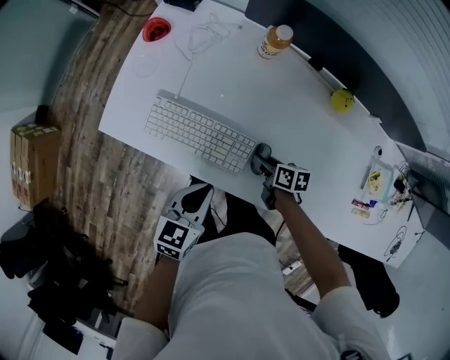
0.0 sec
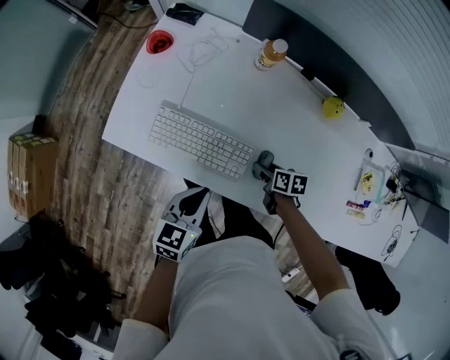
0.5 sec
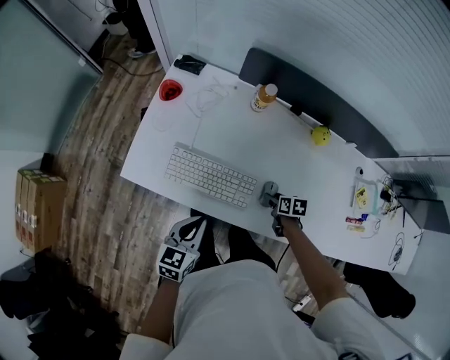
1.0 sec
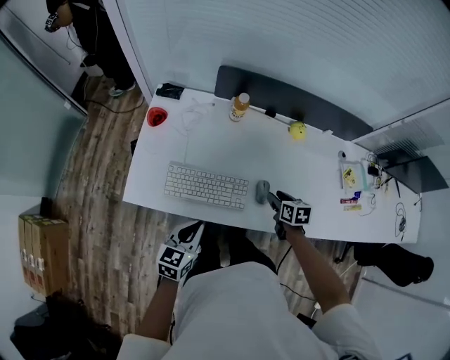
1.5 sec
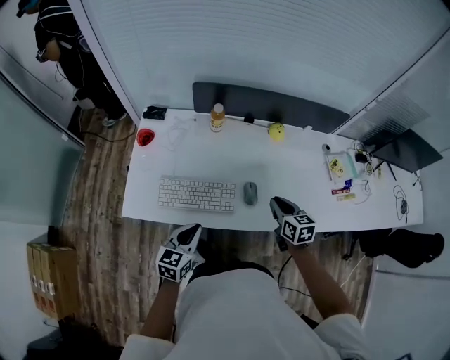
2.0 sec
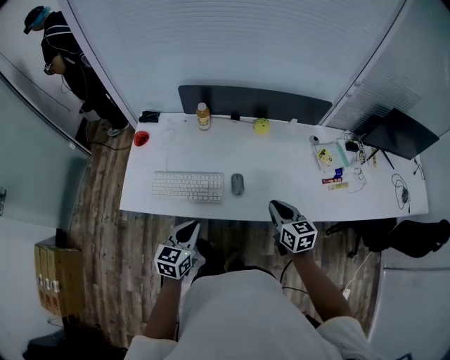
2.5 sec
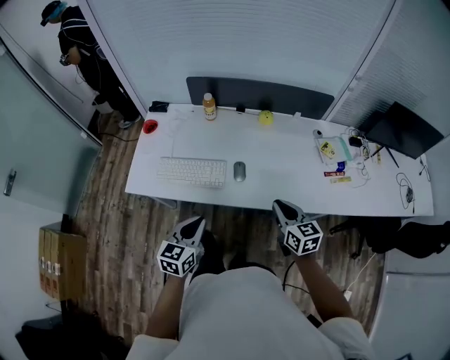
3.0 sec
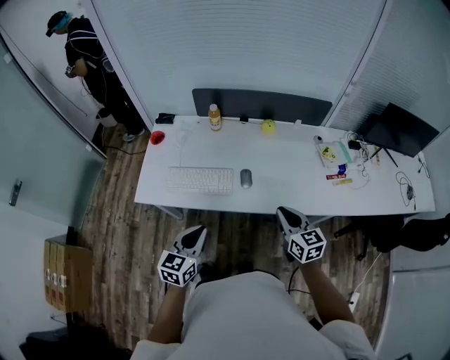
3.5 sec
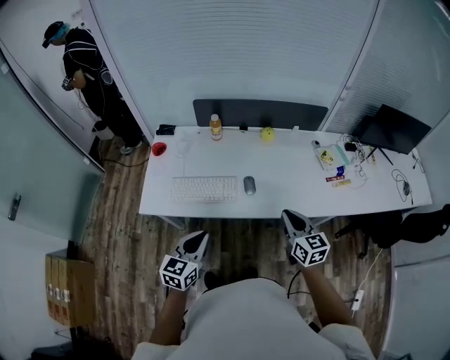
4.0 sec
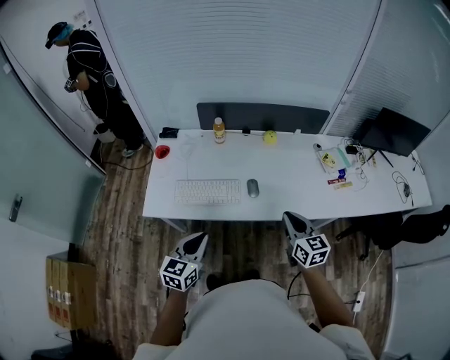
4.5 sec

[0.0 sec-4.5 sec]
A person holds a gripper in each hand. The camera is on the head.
0.0 sec to 2.0 sec: The right gripper is displaced upward by some 20 cm, rotates some 40 degrees, and opens, then closes once more. Meanwhile the left gripper ends up approximately 10 cm from where it was, and swivels some 20 degrees.
2.0 sec to 4.5 sec: Both grippers move backward and upward, approximately 20 cm.

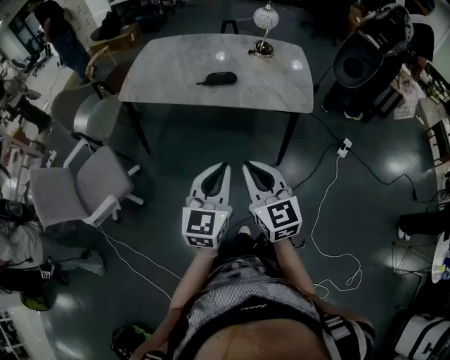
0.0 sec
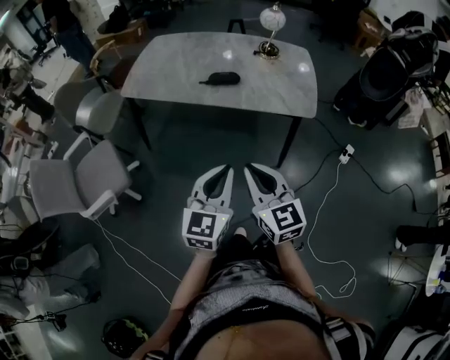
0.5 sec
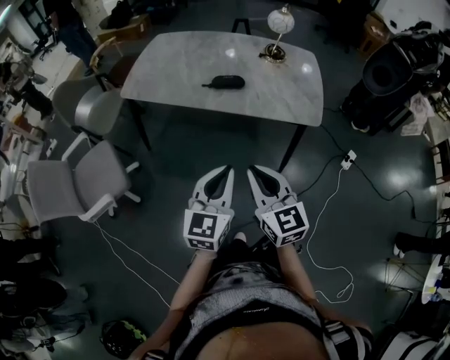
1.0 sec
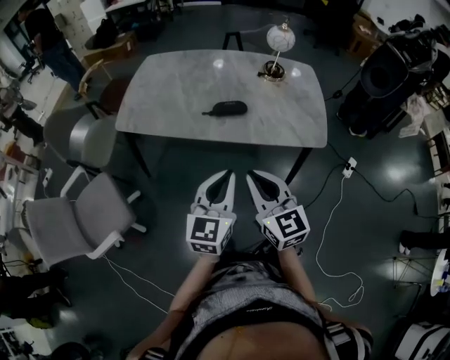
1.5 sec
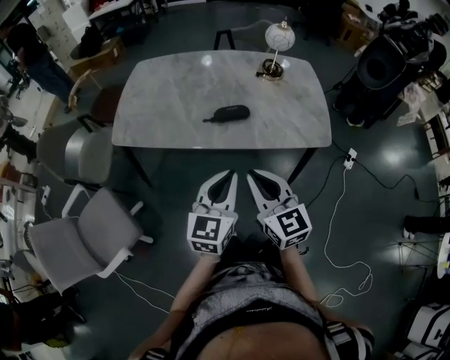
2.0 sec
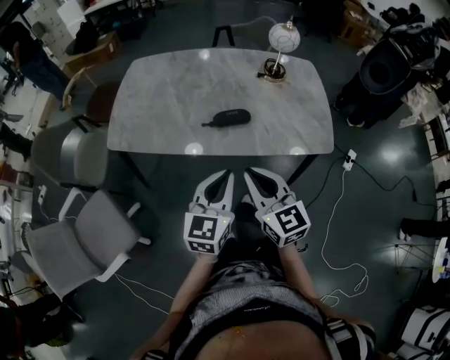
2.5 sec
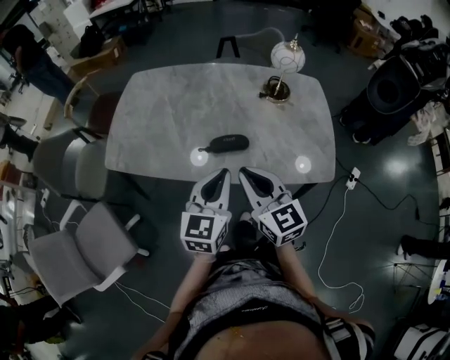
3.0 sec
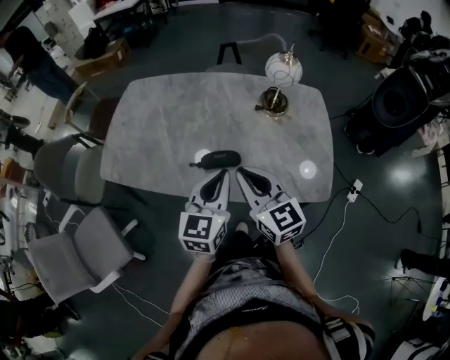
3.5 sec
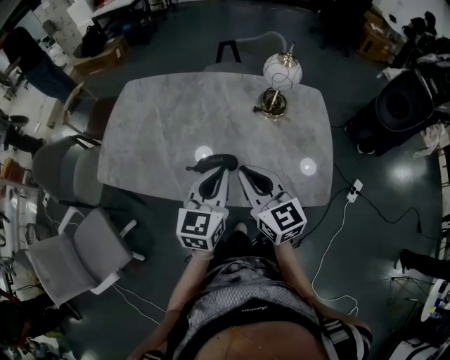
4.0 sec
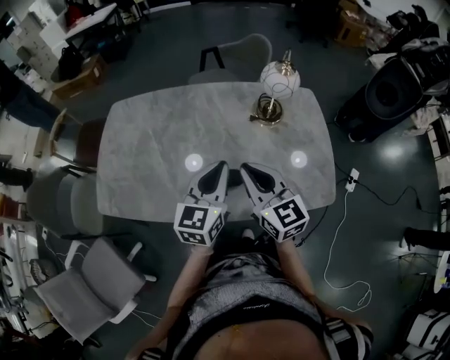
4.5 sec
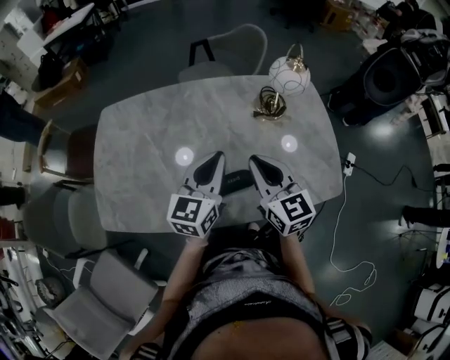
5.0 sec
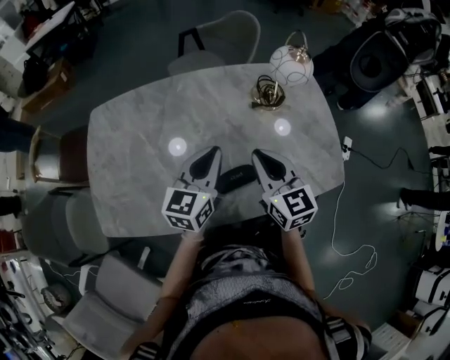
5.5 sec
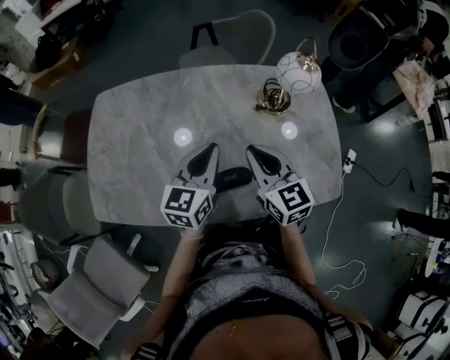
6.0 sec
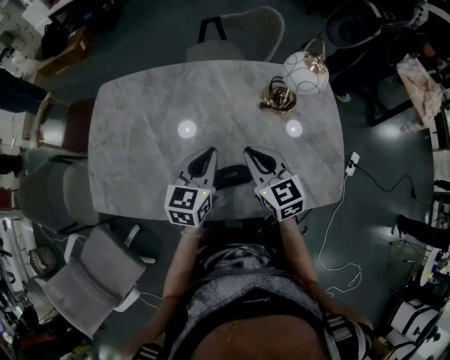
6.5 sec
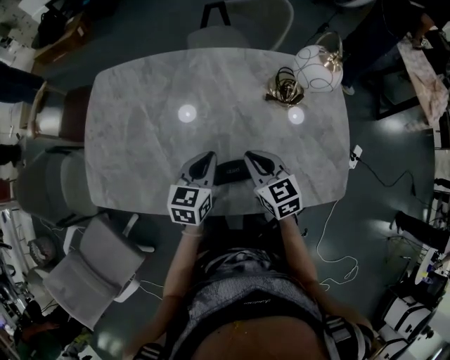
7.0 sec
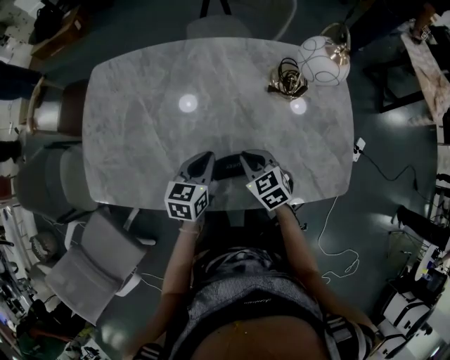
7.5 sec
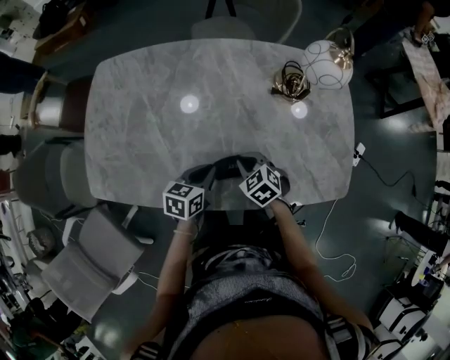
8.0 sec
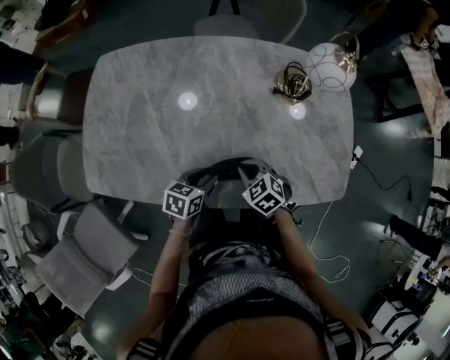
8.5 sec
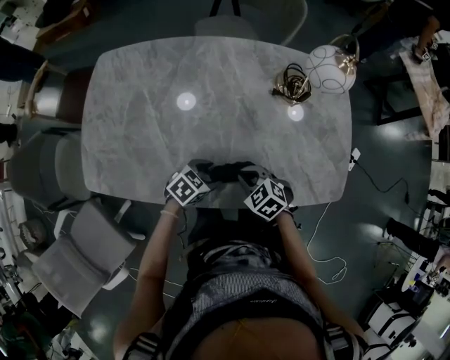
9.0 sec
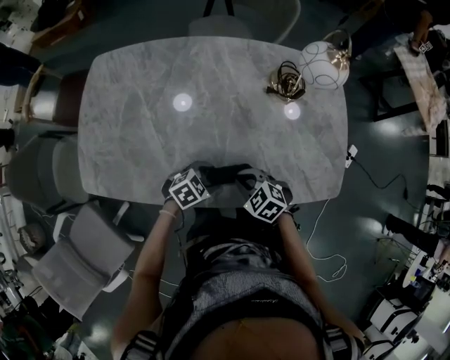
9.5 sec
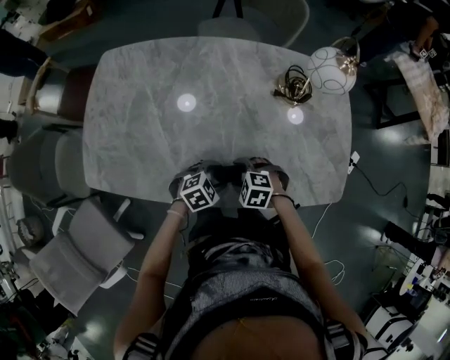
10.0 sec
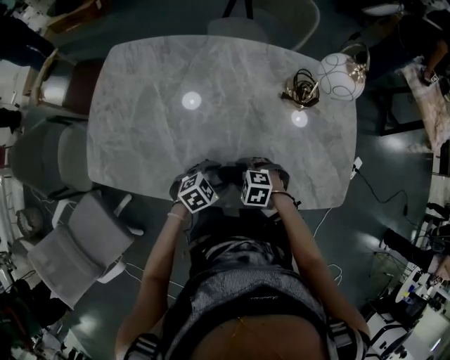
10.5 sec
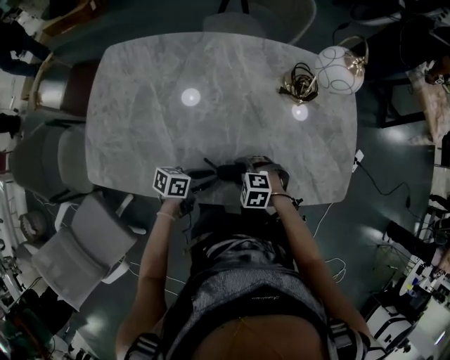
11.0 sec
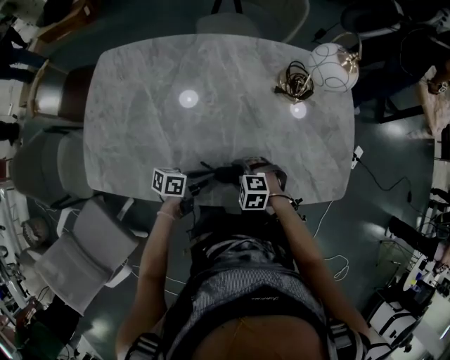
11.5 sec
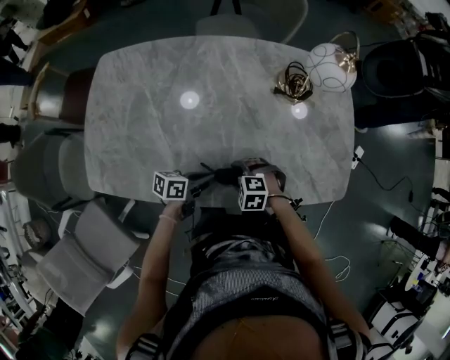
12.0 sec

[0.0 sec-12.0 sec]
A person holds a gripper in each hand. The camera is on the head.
0.0 sec to 2.0 sec: The grippers both shift forward by approximately 20 cm.
2.0 sec to 4.0 sec: Both grippers travel together forward, approximately 25 cm.
4.0 sec to 6.0 sec: The left gripper travels forward and to the left by approximately 20 cm; the right gripper goes approximately 15 cm forward.
6.0 sec to 8.0 sec: Both grippers travel together downward, roughly 20 cm. The right gripper angles its fingers downward, by roughly 40 degrees. The left gripper changes its angle by approximately 30 degrees.
8.0 sec to 10.0 sec: The left gripper changes place by some 10 cm, rolls clockwise, seen from behind, by some 50 degrees, and opens its fingers. Meanwhile the right gripper changes place by some 5 cm, changes its angle by some 40 degrees, and opens up.
10.0 sec to 12.0 sec: The left gripper rolls counterclockwise, seen from behind, by some 60 degrees, and closes its fingers.

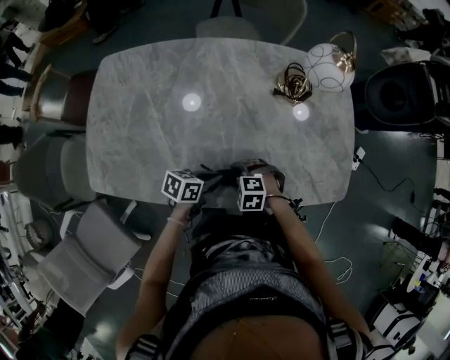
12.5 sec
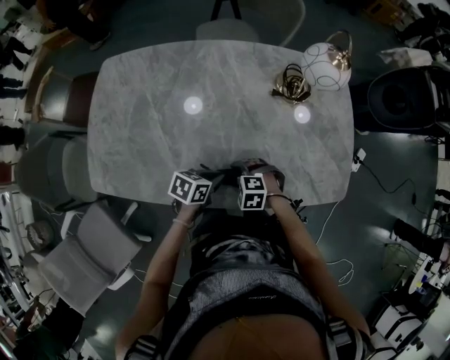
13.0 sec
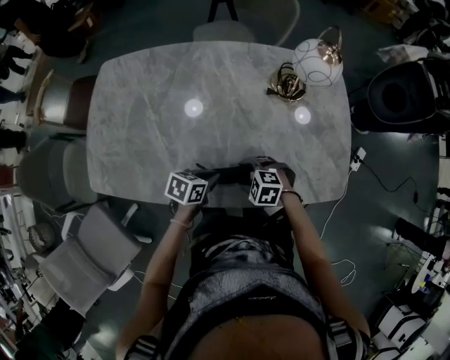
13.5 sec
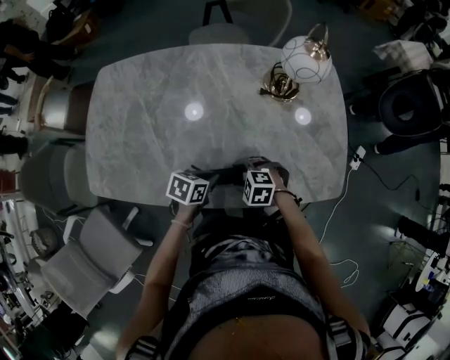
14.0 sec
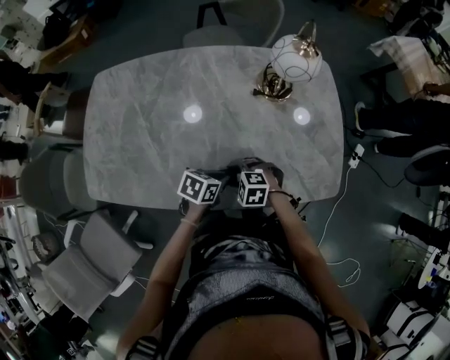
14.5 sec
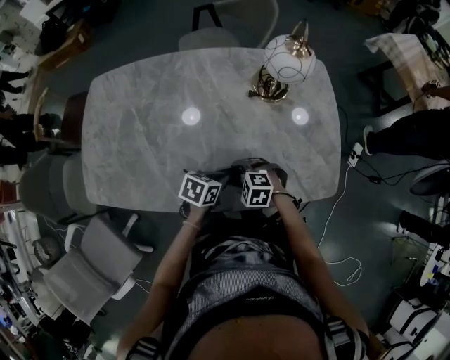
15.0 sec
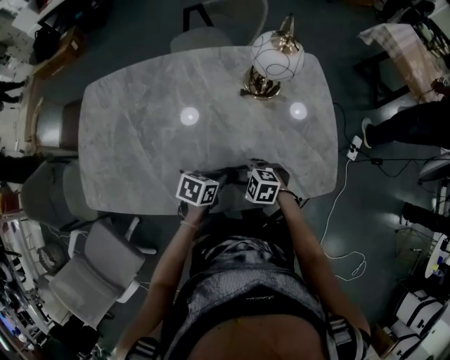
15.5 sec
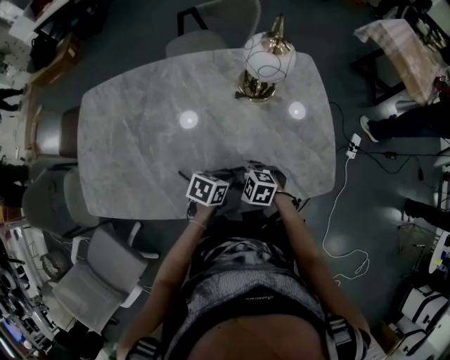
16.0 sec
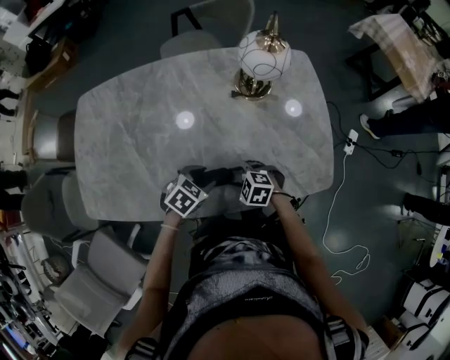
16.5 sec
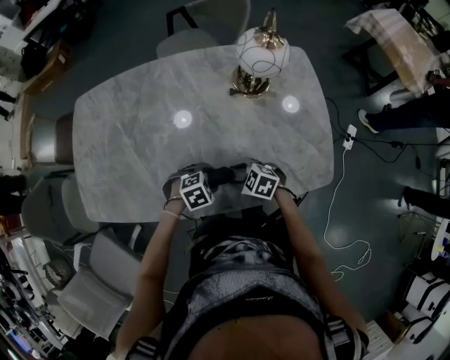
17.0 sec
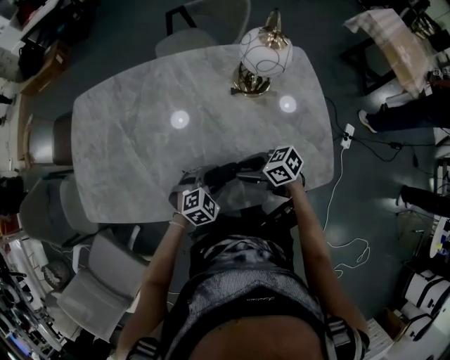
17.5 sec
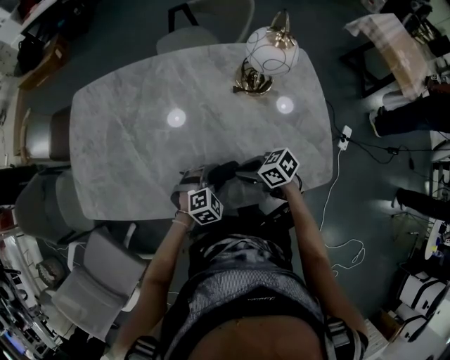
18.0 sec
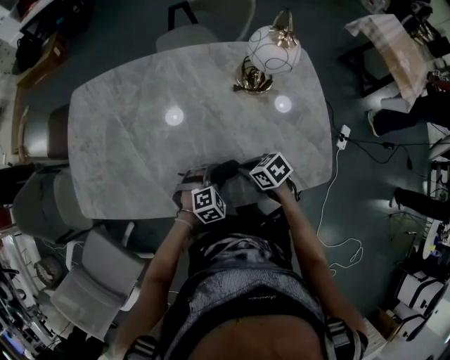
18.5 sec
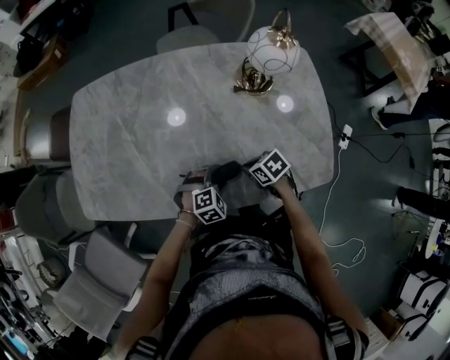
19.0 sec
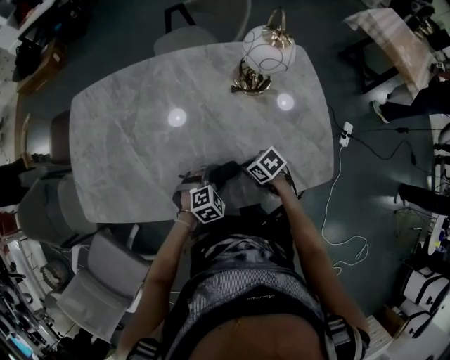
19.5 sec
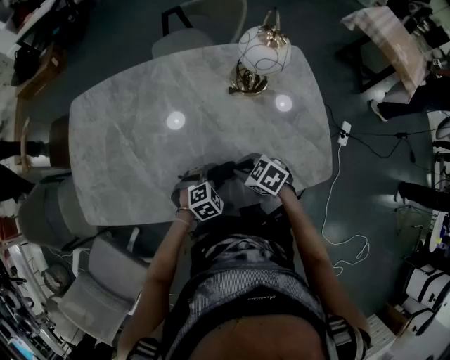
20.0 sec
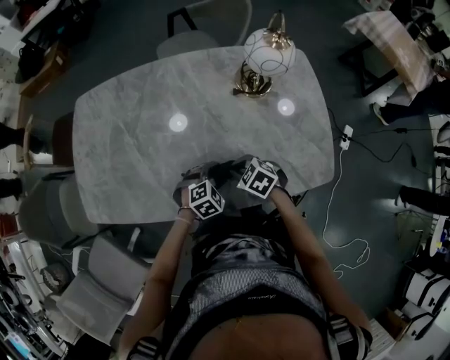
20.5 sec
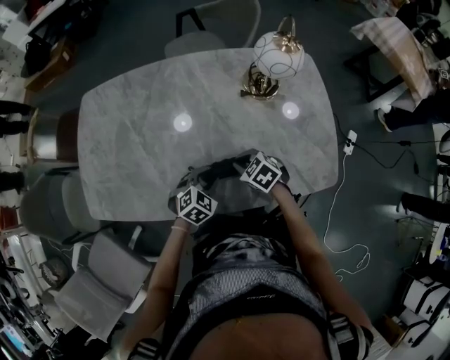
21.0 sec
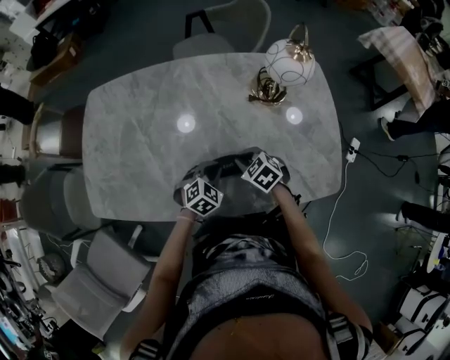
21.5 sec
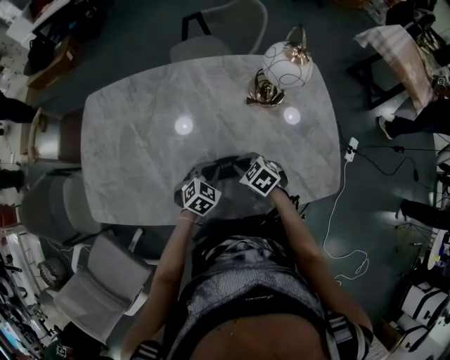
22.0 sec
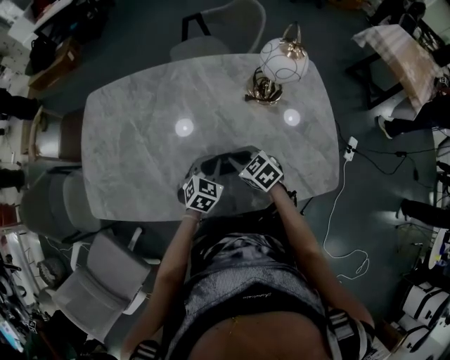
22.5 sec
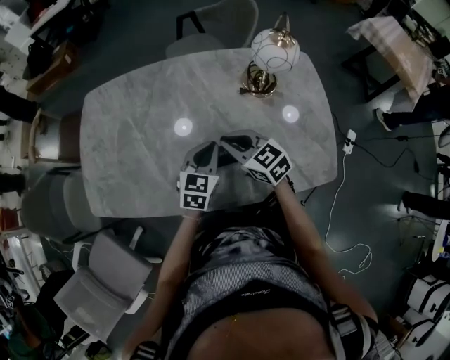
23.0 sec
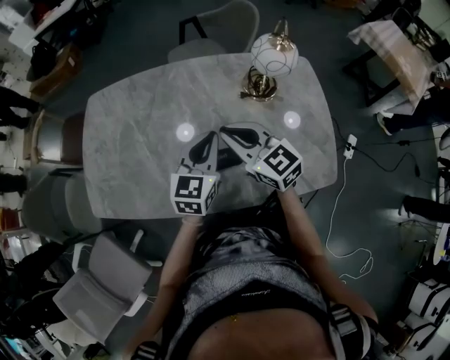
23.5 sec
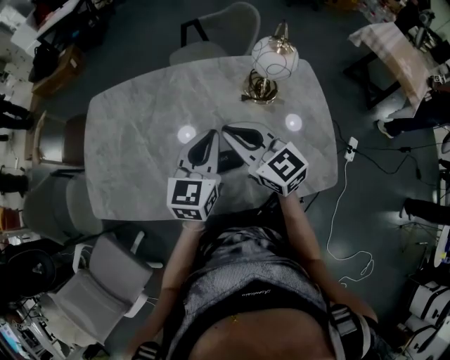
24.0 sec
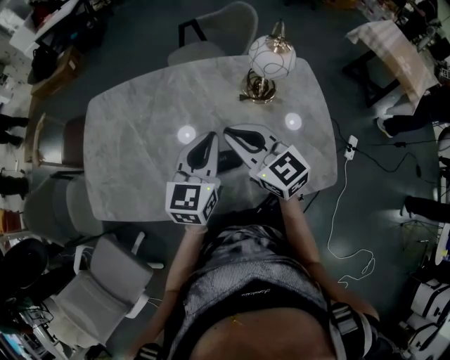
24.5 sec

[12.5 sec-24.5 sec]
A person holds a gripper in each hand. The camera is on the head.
12.5 sec to 14.5 sec: The left gripper changes place by roughly 10 cm.
14.5 sec to 16.5 sec: The left gripper turns by some 30 degrees, and opens up. The right gripper moves roughly 5 cm.
16.5 sec to 18.5 sec: The right gripper rotates around the line of its fingers by roughly 50 degrees, clockwise from behind, and closes, while the left gripper changes place by about 5 cm, changes its angle by about 30 degrees, and opens up.
18.5 sec to 20.5 sec: The right gripper turns by about 30 degrees.
20.5 sec to 22.5 sec: The left gripper moves some 10 cm, turns by about 30 degrees, and closes. The right gripper shifts by some 5 cm.
22.5 sec to 24.5 sec: Both grippers travel together upward, about 25 cm. The left gripper tips its fingers upward by some 30 degrees; the right gripper points its fingers about 30 degrees further upward.
